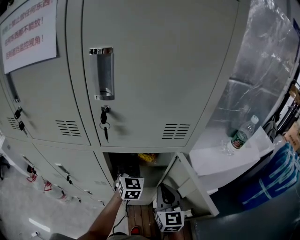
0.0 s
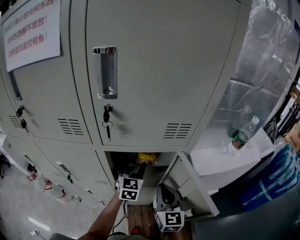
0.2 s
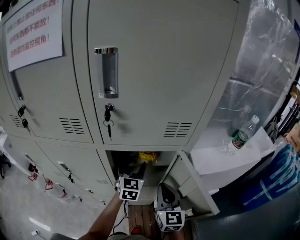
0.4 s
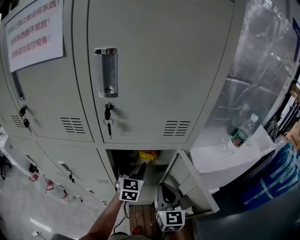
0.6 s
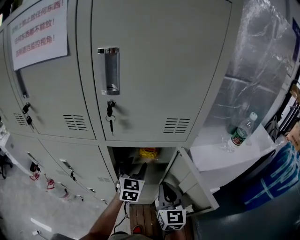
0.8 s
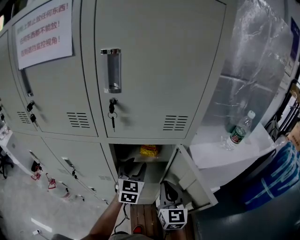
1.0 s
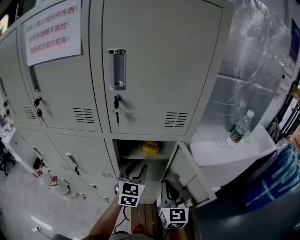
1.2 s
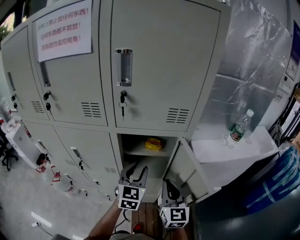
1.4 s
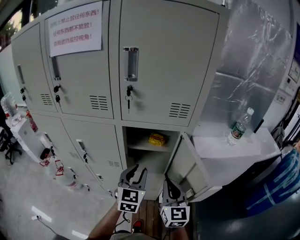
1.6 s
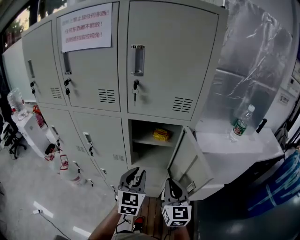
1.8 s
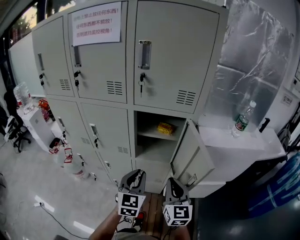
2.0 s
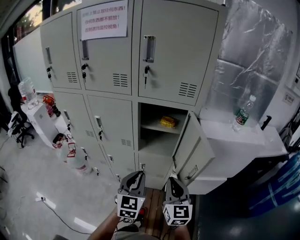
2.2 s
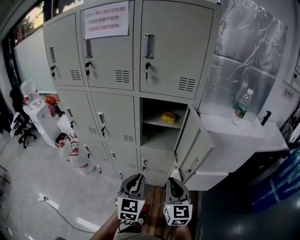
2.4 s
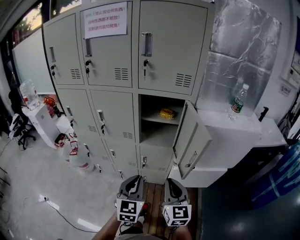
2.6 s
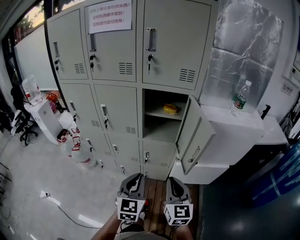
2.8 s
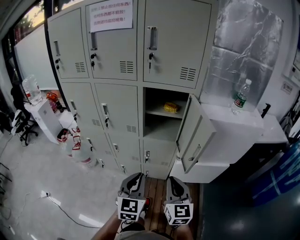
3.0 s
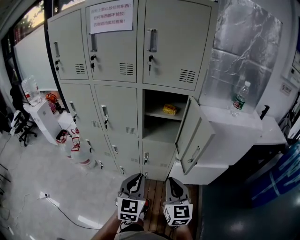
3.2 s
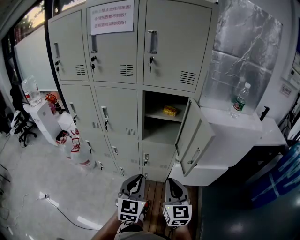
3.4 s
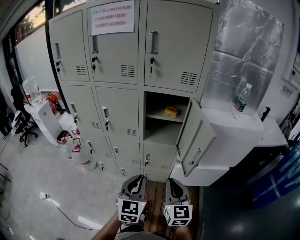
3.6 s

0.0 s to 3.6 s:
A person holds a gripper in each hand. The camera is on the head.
0.0 to 1.8 s: The right gripper moves backward, approximately 15 cm; the left gripper moves backward, some 25 cm, and opens, then closes again.
1.8 to 3.6 s: Both grippers travel together backward, about 20 cm.

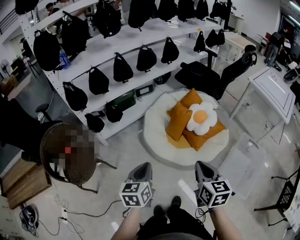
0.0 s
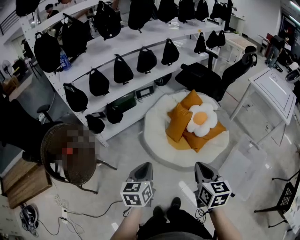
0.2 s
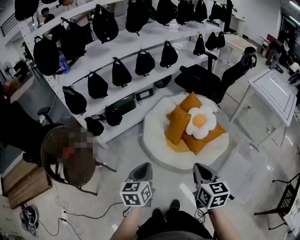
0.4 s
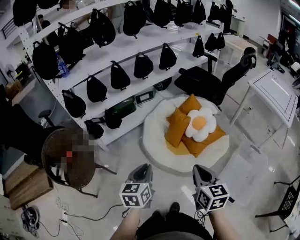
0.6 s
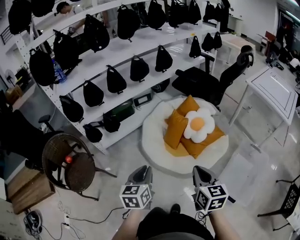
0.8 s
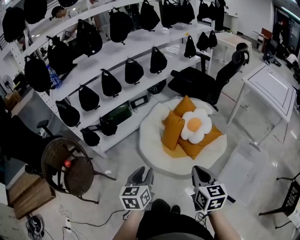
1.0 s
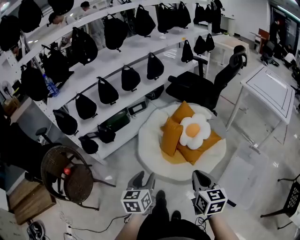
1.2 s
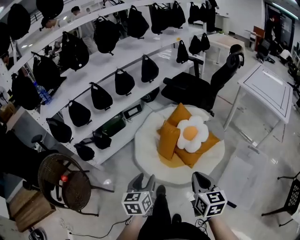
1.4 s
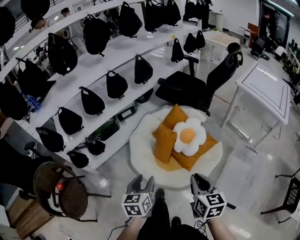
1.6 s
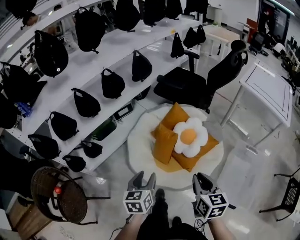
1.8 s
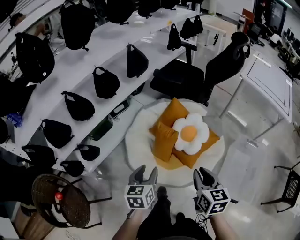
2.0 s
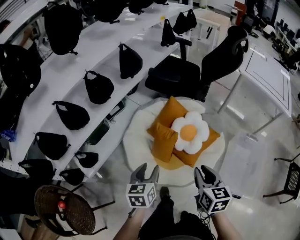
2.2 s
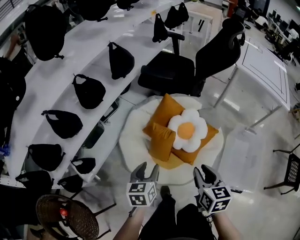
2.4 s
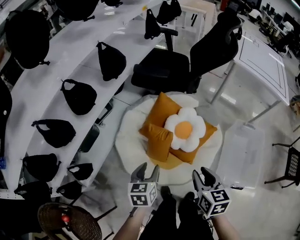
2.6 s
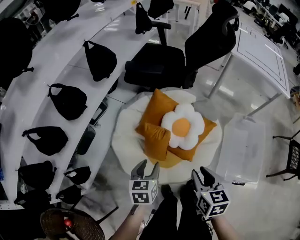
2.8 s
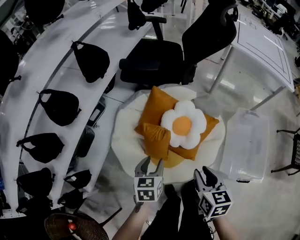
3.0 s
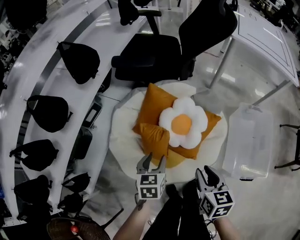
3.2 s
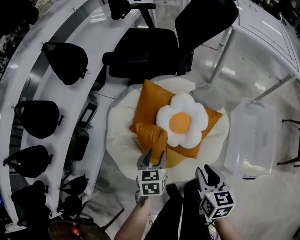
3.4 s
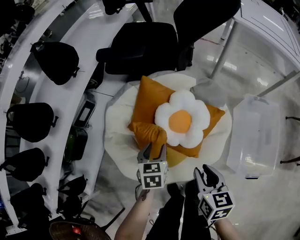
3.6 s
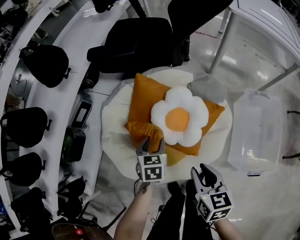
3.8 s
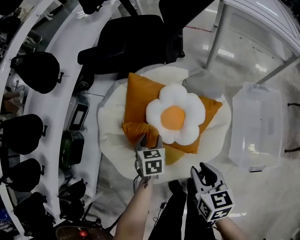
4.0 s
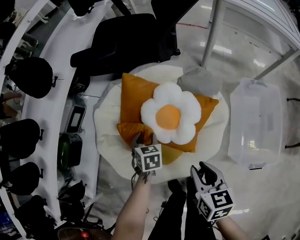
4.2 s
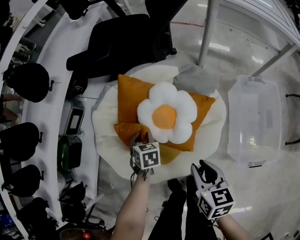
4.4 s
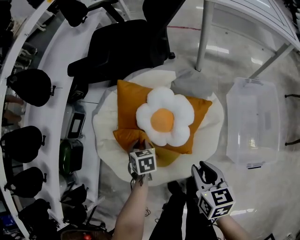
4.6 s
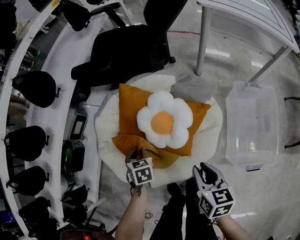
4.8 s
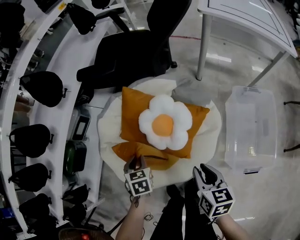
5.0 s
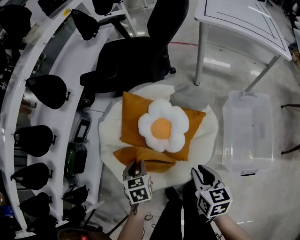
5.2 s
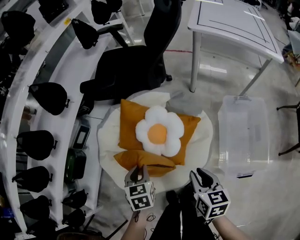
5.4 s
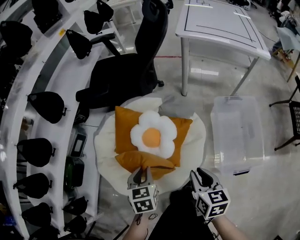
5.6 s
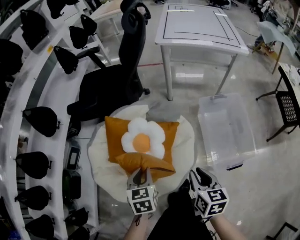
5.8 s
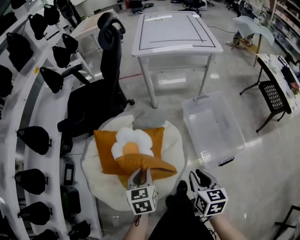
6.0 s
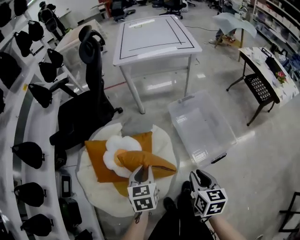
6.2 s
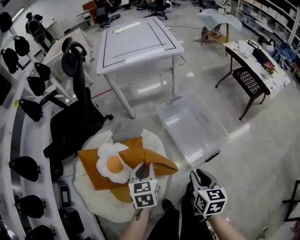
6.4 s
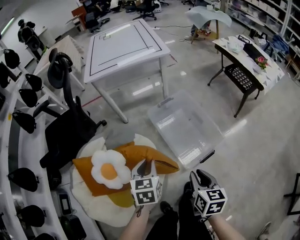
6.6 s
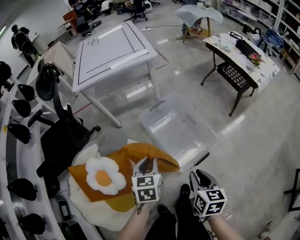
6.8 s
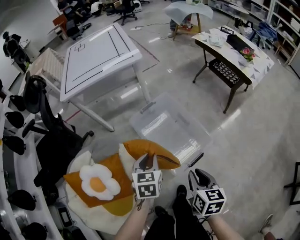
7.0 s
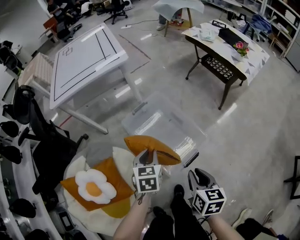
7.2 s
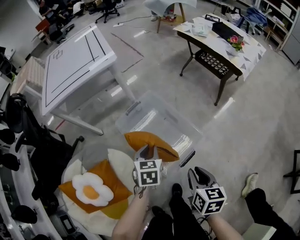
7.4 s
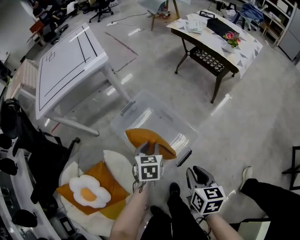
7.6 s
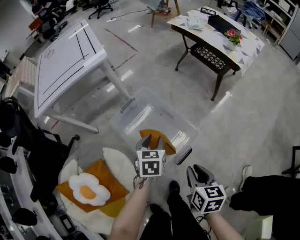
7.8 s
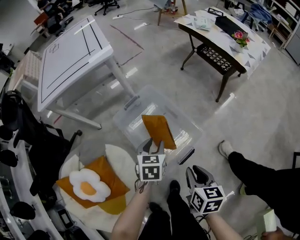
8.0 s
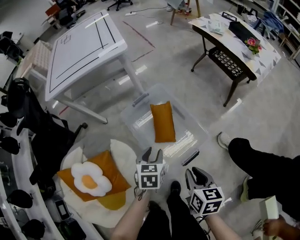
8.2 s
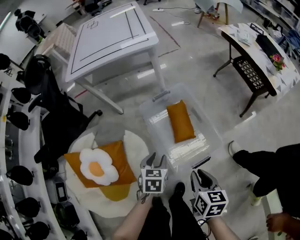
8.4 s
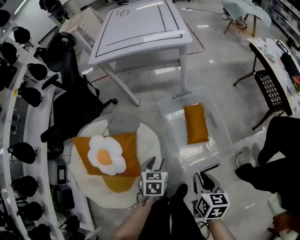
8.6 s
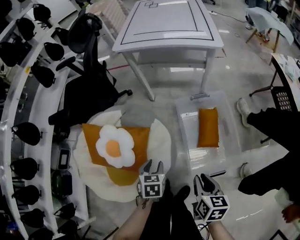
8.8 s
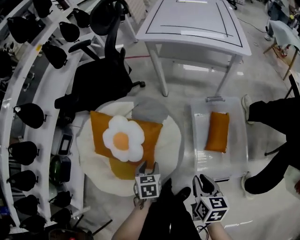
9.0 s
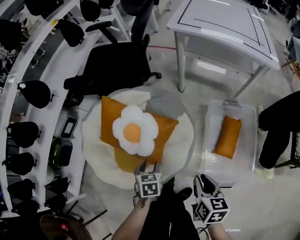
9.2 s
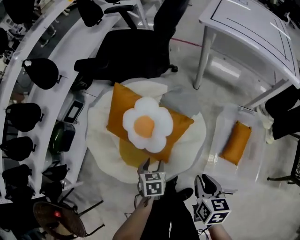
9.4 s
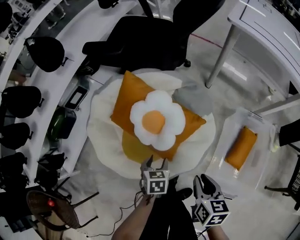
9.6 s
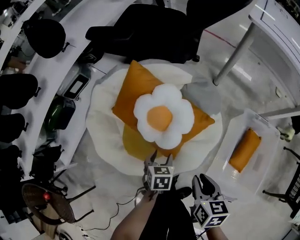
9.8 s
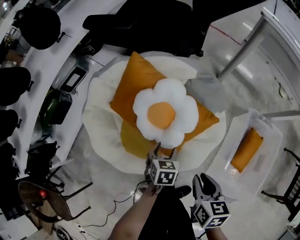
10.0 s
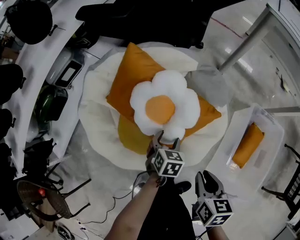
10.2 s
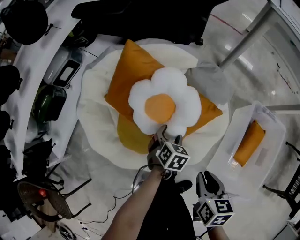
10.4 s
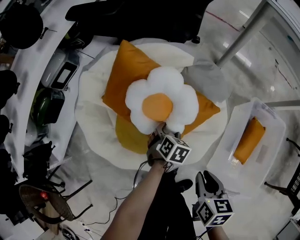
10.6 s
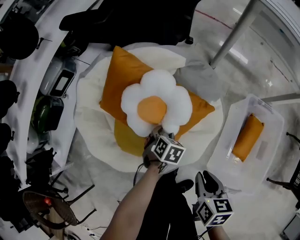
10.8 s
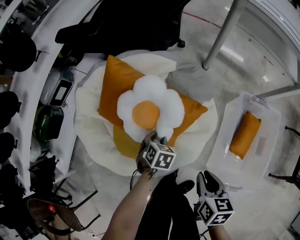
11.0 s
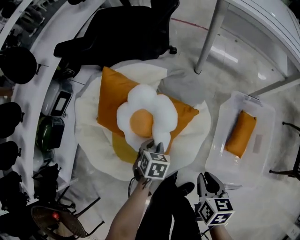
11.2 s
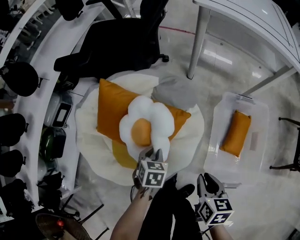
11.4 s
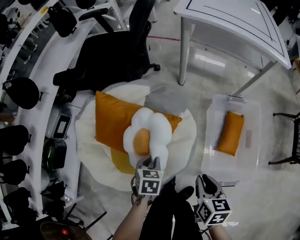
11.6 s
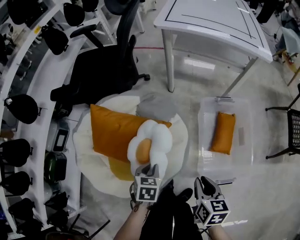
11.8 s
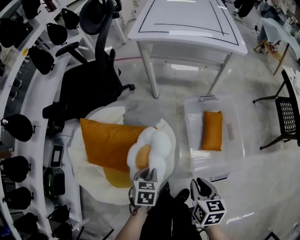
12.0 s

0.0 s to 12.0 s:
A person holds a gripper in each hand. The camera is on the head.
0.0 to 1.6 s: The grippers both shift forward and to the right by approximately 20 cm. The left gripper opens.
1.6 to 3.0 s: Both grippers move forward and downward, roughly 30 cm. The right gripper swivels some 30 degrees, and opens its fingers. The left gripper changes its angle by roughly 30 degrees.
3.0 to 4.4 s: The right gripper shifts roughly 15 cm downward and to the right. The left gripper is displaced downward and forward by approximately 25 cm, and rotates roughly 30 degrees.
4.4 to 6.0 s: The left gripper goes approximately 25 cm upward, and swivels about 30 degrees. The right gripper shifts by roughly 25 cm, and changes its angle by approximately 30 degrees.
6.0 to 7.6 s: The right gripper changes place by about 35 cm, and rotates about 30 degrees. The left gripper changes place by about 50 cm, and swivels some 40 degrees.
7.6 to 9.0 s: The left gripper ends up about 40 cm from where it was, and changes its angle by approximately 50 degrees. Meanwhile the right gripper changes place by roughly 25 cm, and changes its angle by roughly 40 degrees.
9.0 to 10.4 s: The right gripper is displaced to the left, downward and forward by some 30 cm, and turns by roughly 30 degrees, while the left gripper moves downward, forward and to the left, some 30 cm, and opens.
10.4 to 12.0 s: The right gripper ends up about 25 cm from where it was, and rotates roughly 30 degrees. The left gripper is displaced upward by roughly 20 cm, and closes up.

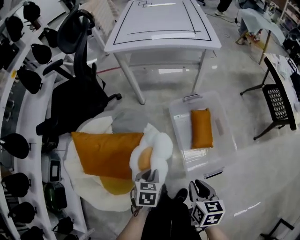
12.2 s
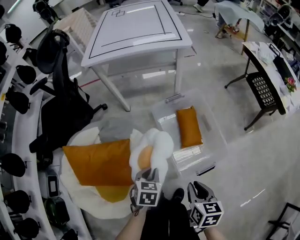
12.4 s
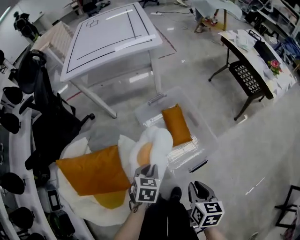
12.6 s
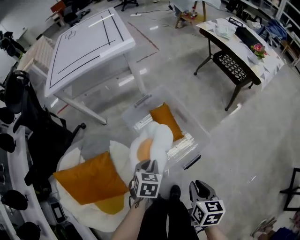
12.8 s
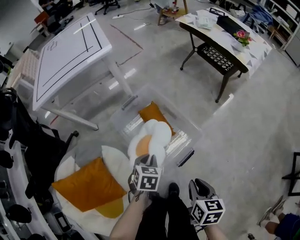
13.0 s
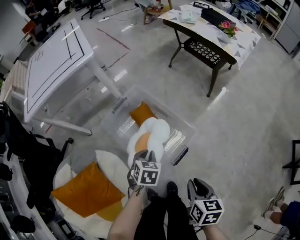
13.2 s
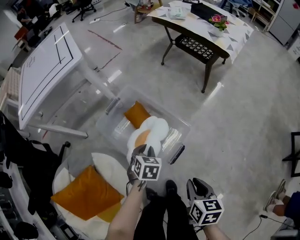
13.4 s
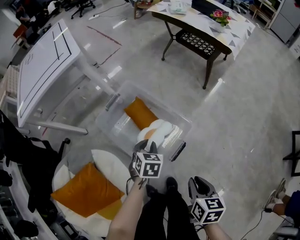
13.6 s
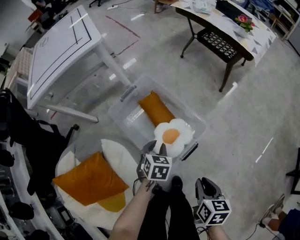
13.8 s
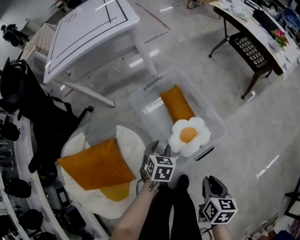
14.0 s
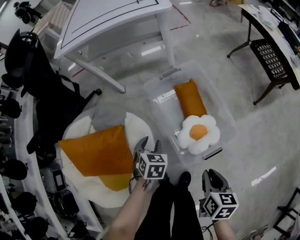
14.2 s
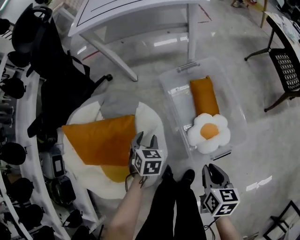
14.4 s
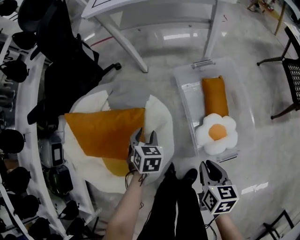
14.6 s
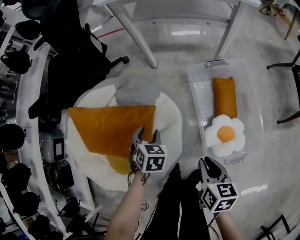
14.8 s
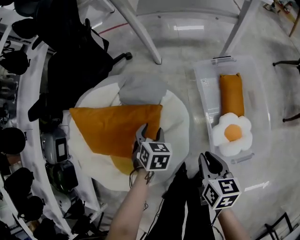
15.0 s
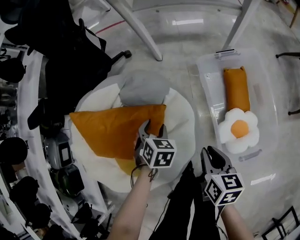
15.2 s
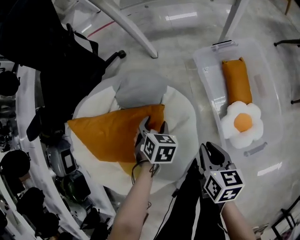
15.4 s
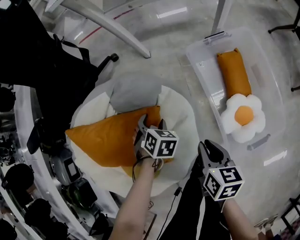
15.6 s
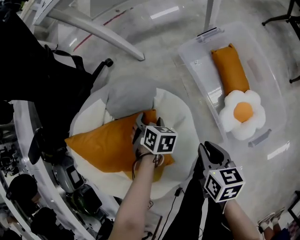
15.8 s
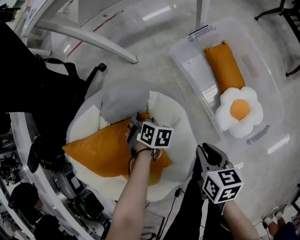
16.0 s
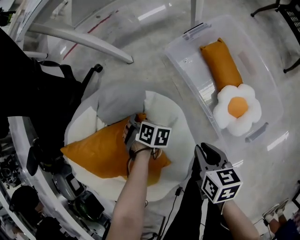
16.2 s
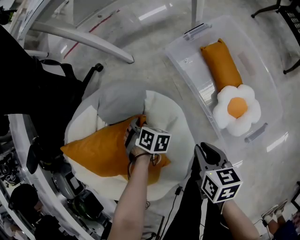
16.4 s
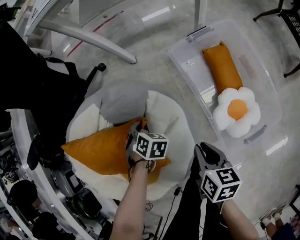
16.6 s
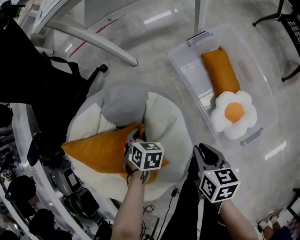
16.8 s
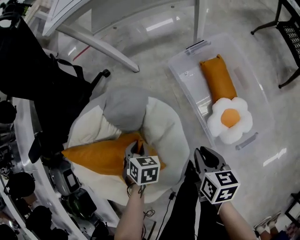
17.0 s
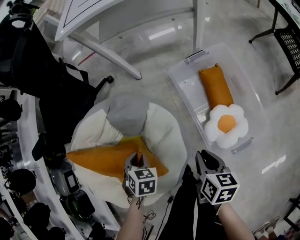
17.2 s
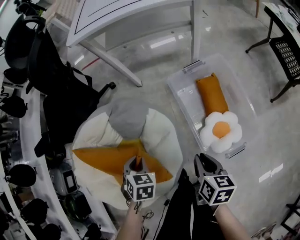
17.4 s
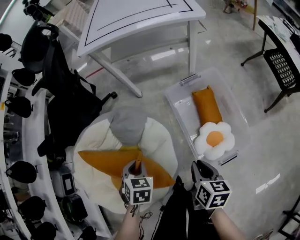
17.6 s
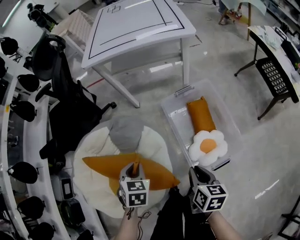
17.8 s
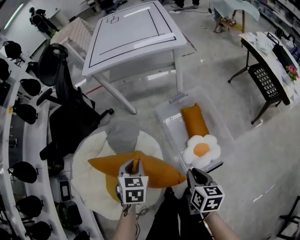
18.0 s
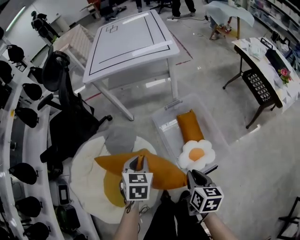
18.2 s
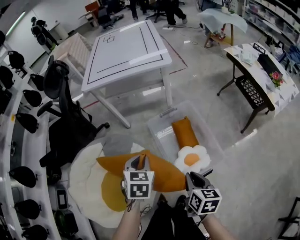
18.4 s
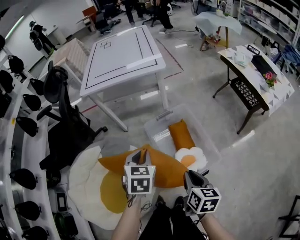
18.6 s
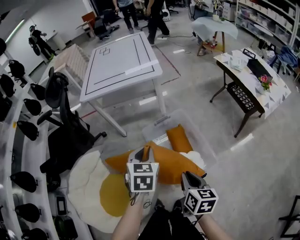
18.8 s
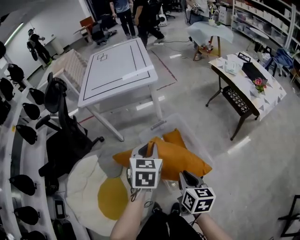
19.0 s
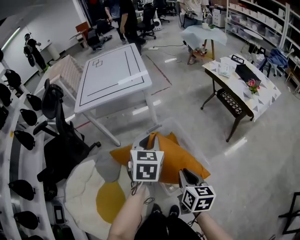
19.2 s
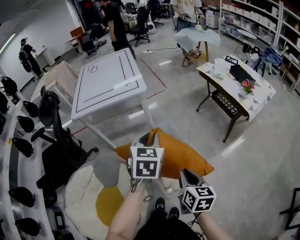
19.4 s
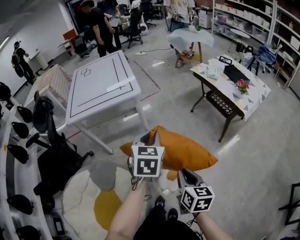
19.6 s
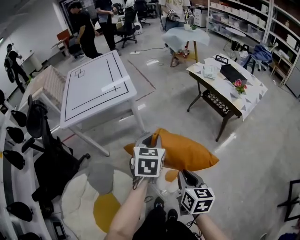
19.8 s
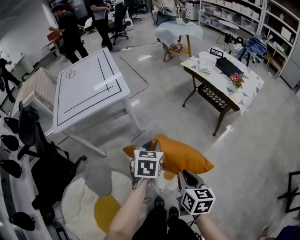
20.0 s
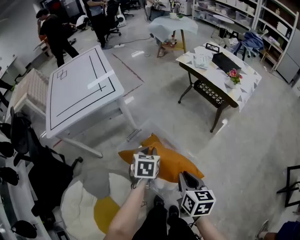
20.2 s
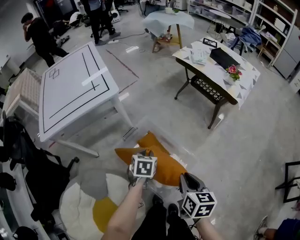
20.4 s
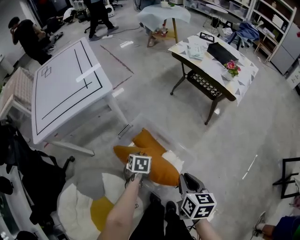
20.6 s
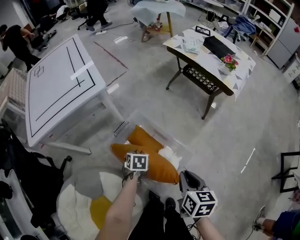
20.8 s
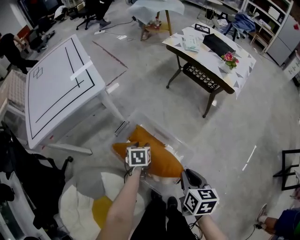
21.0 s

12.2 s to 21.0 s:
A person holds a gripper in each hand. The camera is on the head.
12.2 to 13.6 s: The right gripper ends up about 30 cm from where it was, and turns by approximately 40 degrees, while the left gripper changes place by approximately 35 cm, and rotates some 40 degrees.
13.6 to 15.2 s: Both grippers are carried some 50 cm. The left gripper changes its angle by roughly 40 degrees, and opens up. The right gripper turns by approximately 40 degrees.
15.2 to 16.6 s: Both grippers travel together downward, about 5 cm. The left gripper changes its angle by about 20 degrees, and closes its fingers.
16.6 to 18.0 s: The right gripper shifts some 20 cm upward, while the left gripper moves upward, roughly 35 cm, and rotates approximately 30 degrees.
18.0 to 19.6 s: The right gripper travels upward and to the right by approximately 20 cm, and changes its angle by some 20 degrees. The left gripper moves to the right and upward, about 35 cm, and changes its angle by about 30 degrees.
19.6 to 21.0 s: The right gripper heads downward and forward, covering some 10 cm, and rotates approximately 20 degrees, while the left gripper shifts roughly 30 cm downward, turns by roughly 30 degrees, and opens up.
